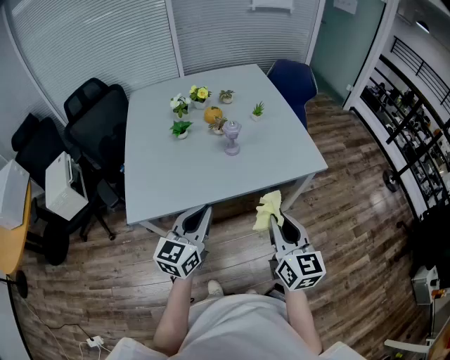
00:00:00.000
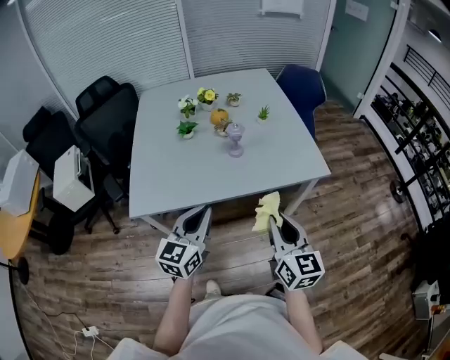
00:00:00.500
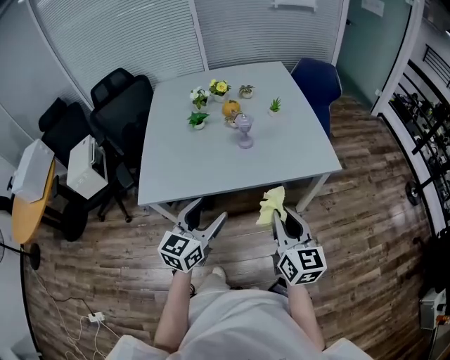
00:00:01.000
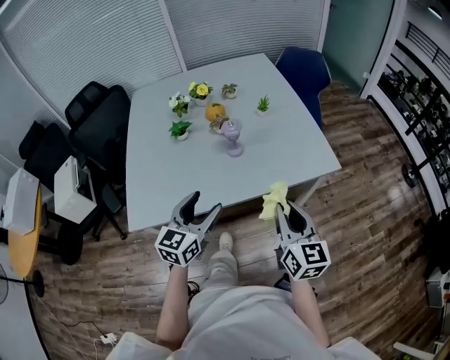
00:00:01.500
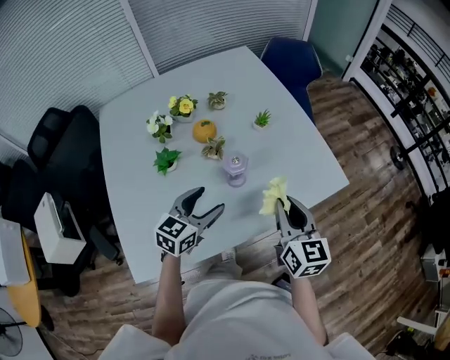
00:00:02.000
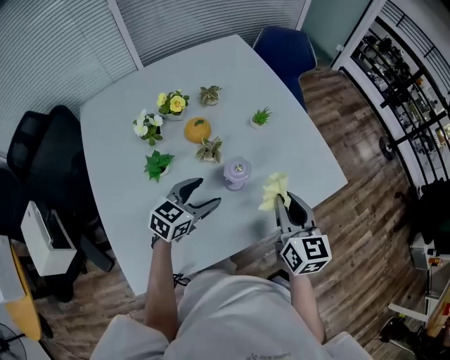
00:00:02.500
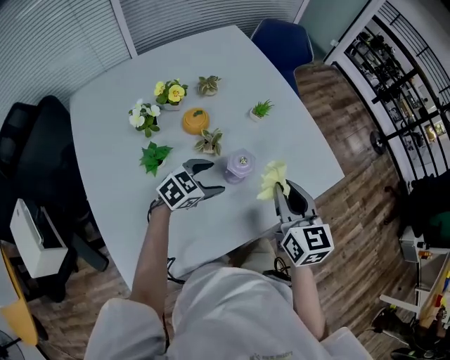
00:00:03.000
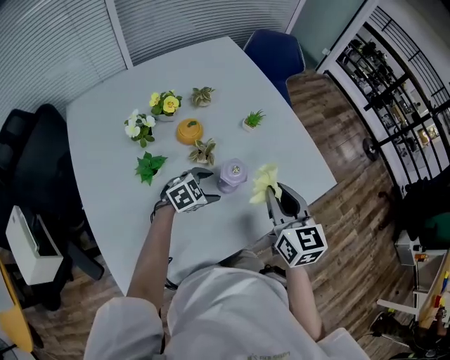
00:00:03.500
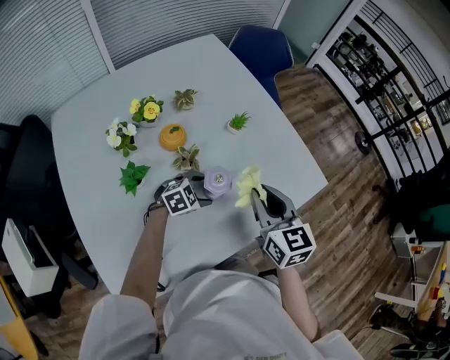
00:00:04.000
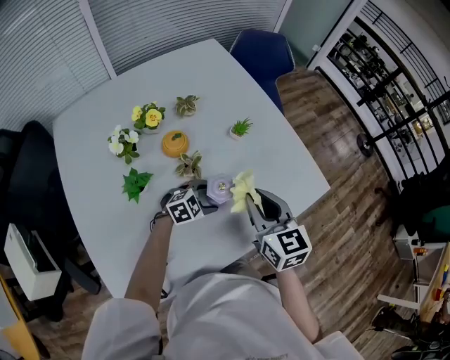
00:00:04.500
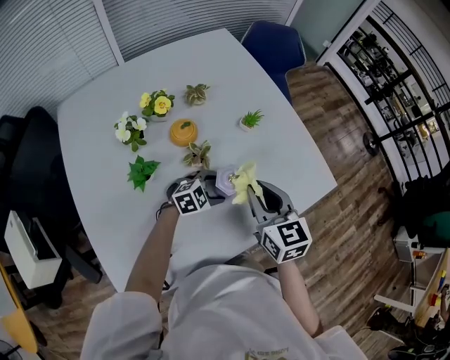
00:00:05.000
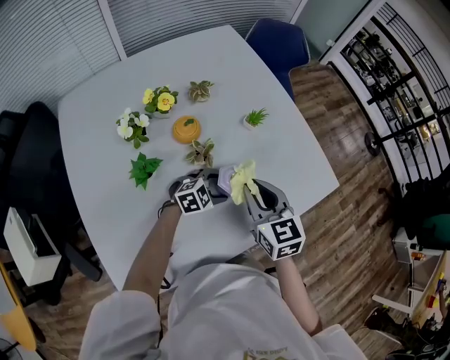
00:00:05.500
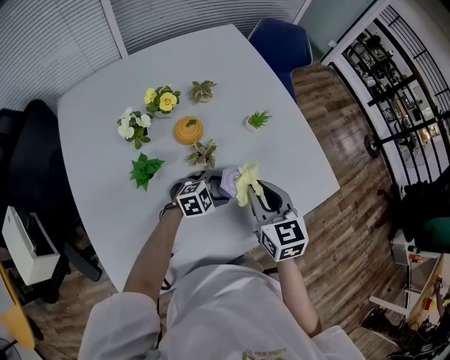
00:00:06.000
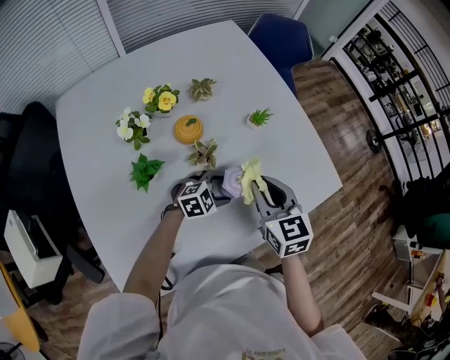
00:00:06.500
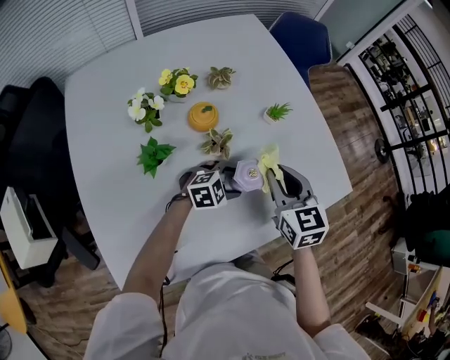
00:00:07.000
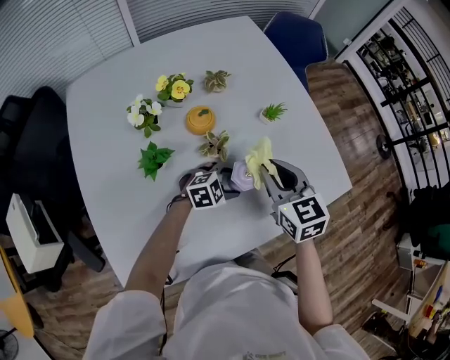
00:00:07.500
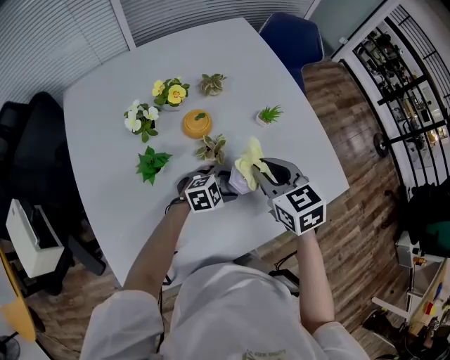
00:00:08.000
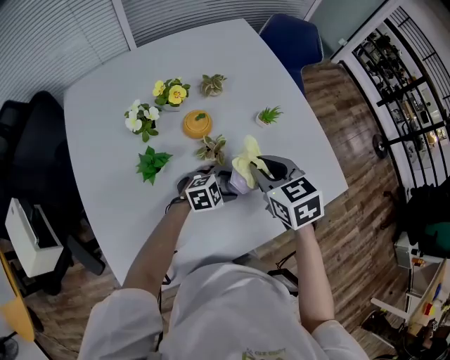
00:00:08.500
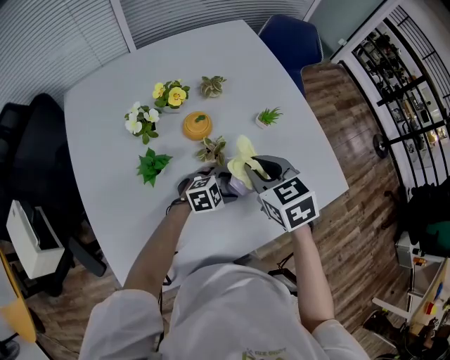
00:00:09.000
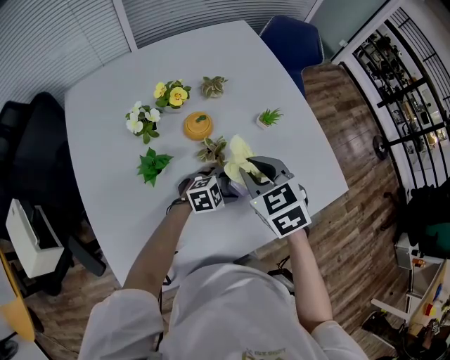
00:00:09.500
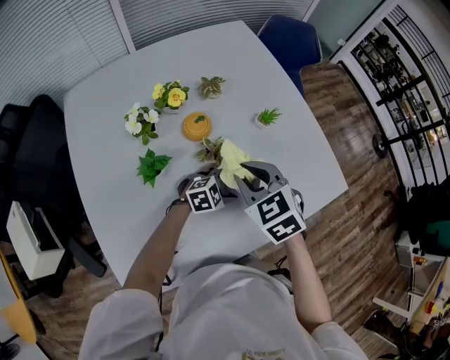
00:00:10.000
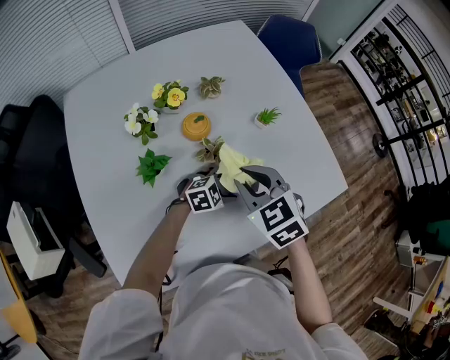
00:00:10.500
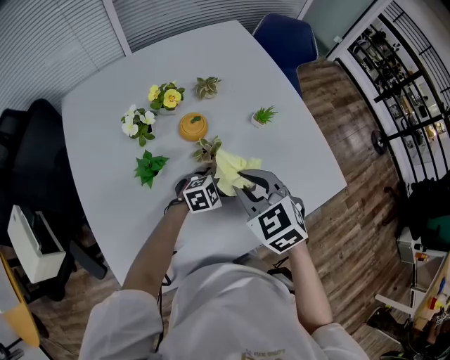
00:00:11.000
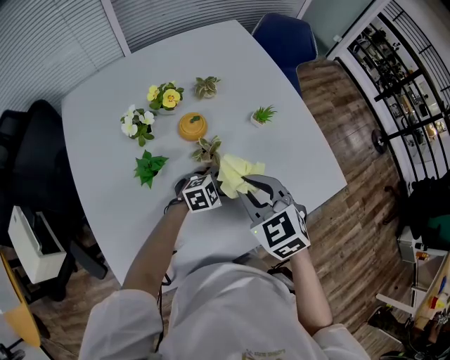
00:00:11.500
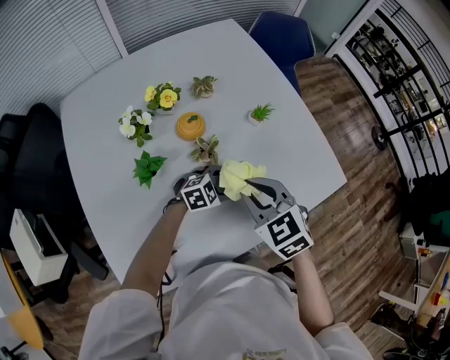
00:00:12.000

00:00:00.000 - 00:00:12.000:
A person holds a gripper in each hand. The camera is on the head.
00:00:00.000 - 00:00:02.000: The two grippers go some 30 cm forward. The left gripper changes its angle by some 30 degrees, and opens its fingers.
00:00:02.000 - 00:00:04.000: The right gripper shifts about 10 cm to the left and forward. Meanwhile the left gripper heads downward and forward, covering roughly 20 cm, and swivels some 50 degrees.
00:00:04.000 - 00:00:06.000: The right gripper travels to the left by approximately 5 cm.
00:00:06.000 - 00:00:08.000: The grippers stay close to where they were, moving slightly.
00:00:08.000 - 00:00:10.000: The right gripper shifts by roughly 5 cm.
00:00:10.000 - 00:00:12.000: The right gripper moves roughly 5 cm.

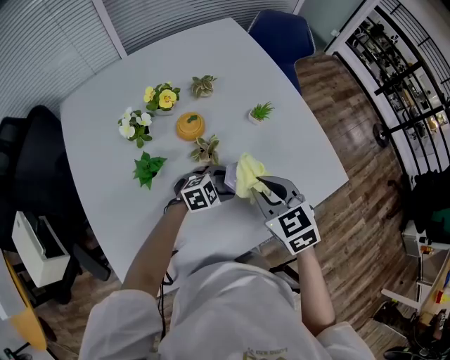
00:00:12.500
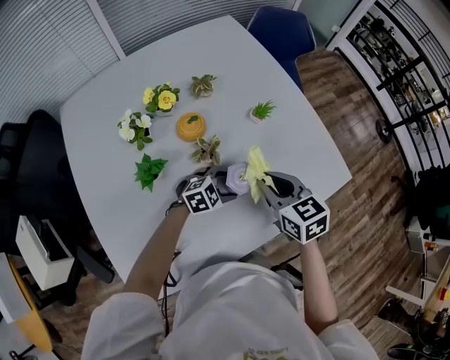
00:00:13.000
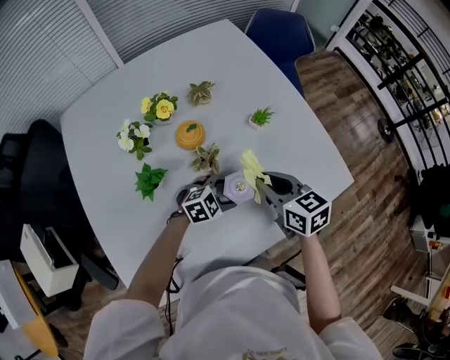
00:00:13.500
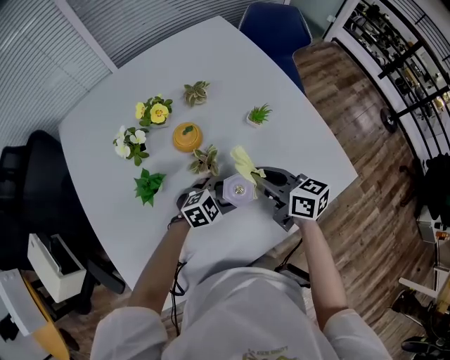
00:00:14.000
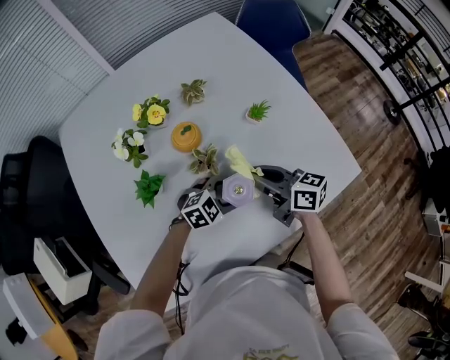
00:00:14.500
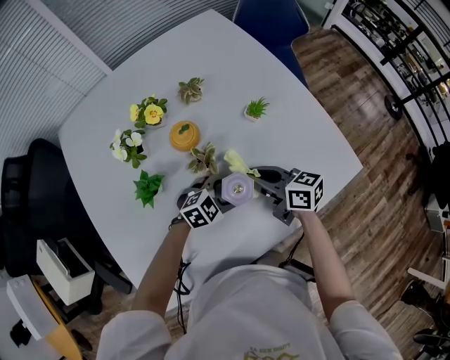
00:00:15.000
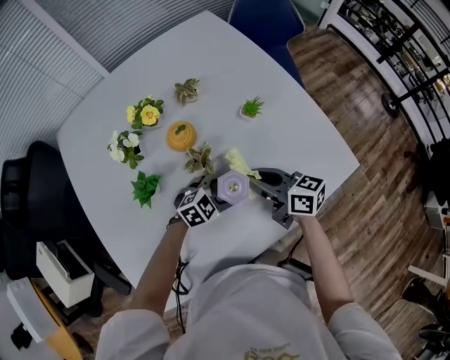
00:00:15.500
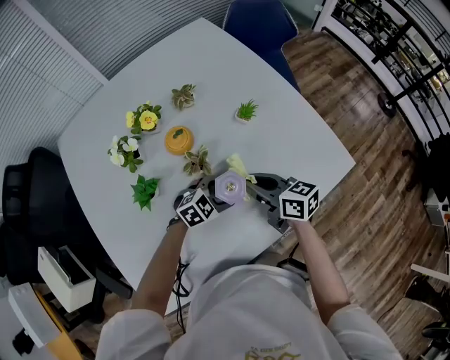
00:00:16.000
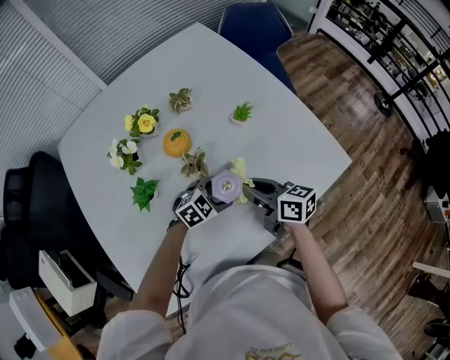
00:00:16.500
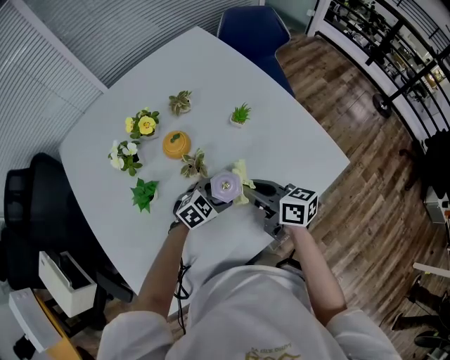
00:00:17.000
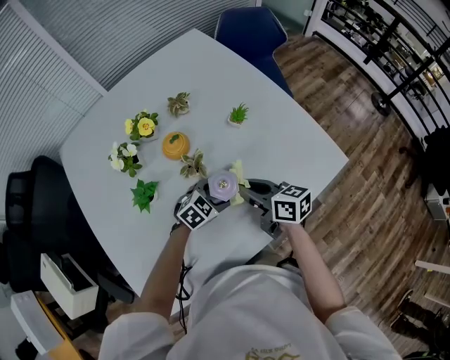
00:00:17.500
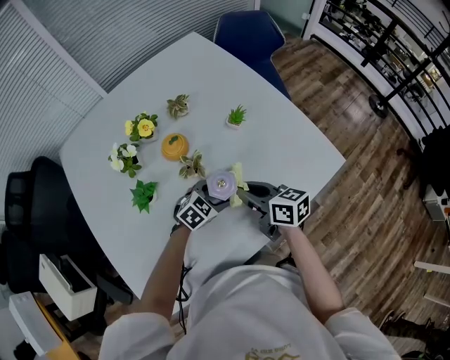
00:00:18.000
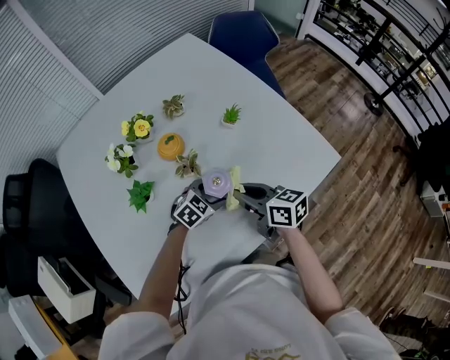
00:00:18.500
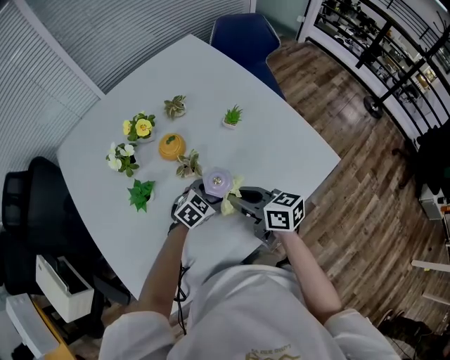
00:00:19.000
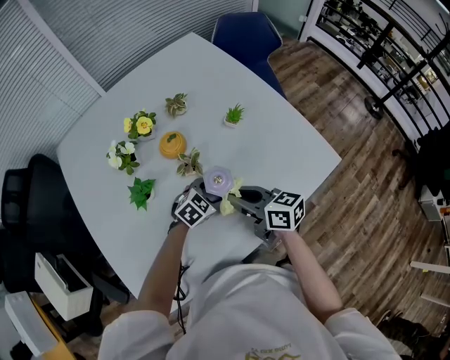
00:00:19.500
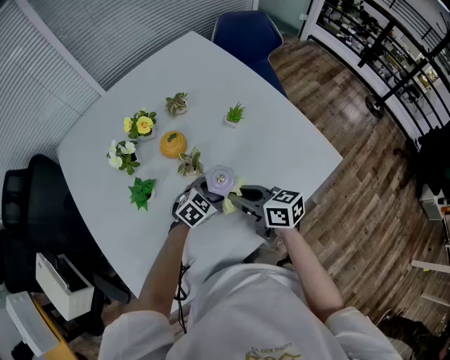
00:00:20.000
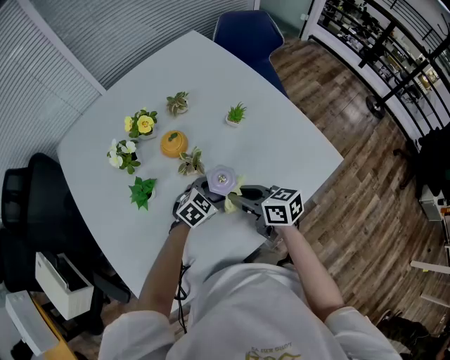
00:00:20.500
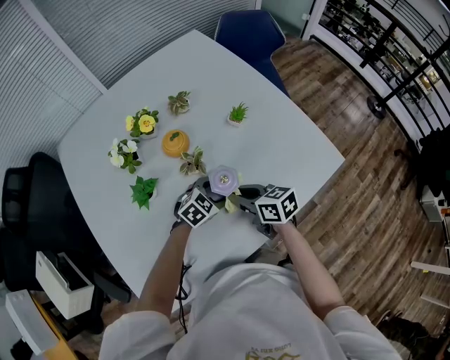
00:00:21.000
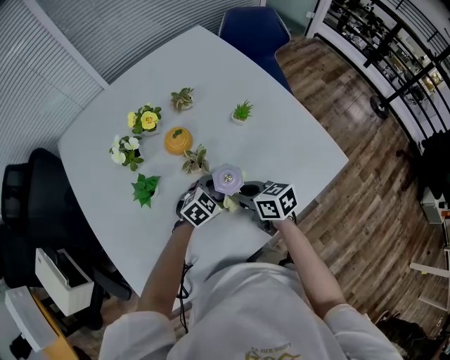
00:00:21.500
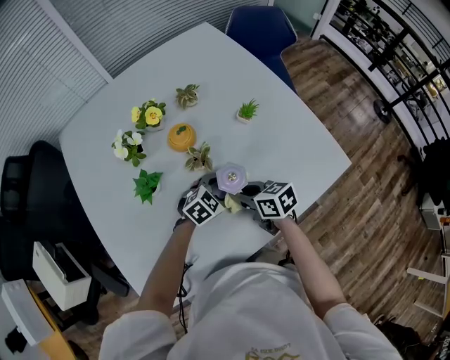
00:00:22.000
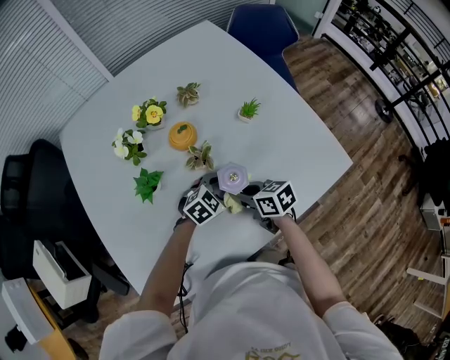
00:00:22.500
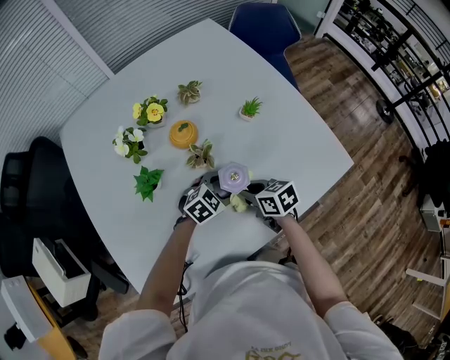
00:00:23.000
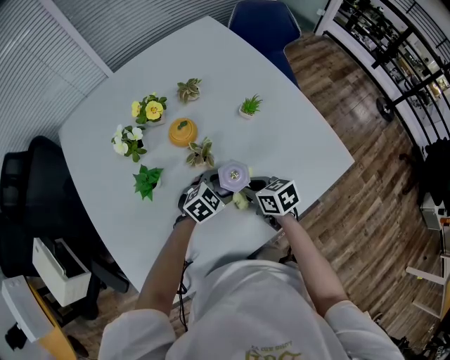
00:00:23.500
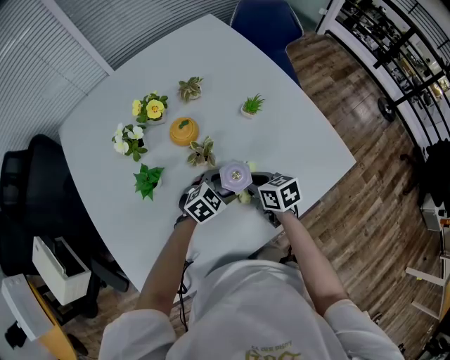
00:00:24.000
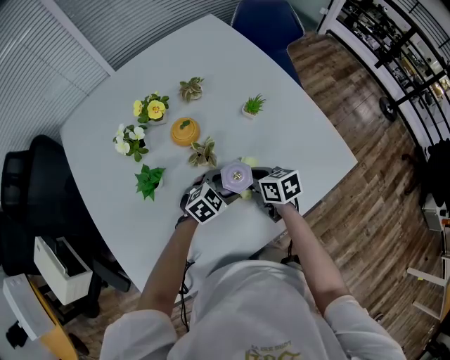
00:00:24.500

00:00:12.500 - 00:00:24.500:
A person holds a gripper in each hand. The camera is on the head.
00:00:12.500 - 00:00:14.500: The right gripper moves roughly 10 cm, and swivels approximately 50 degrees.
00:00:14.500 - 00:00:16.500: The grippers stay close to where they were, moving slightly.
00:00:16.500 - 00:00:20.500: The grippers move only a little.
00:00:20.500 - 00:00:22.500: The right gripper travels downward by some 5 cm.
00:00:22.500 - 00:00:24.500: The right gripper moves approximately 5 cm.

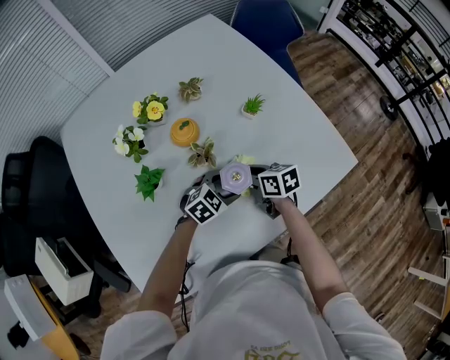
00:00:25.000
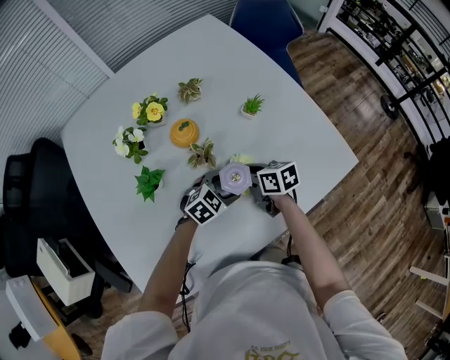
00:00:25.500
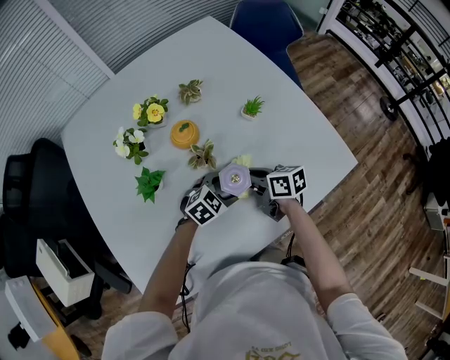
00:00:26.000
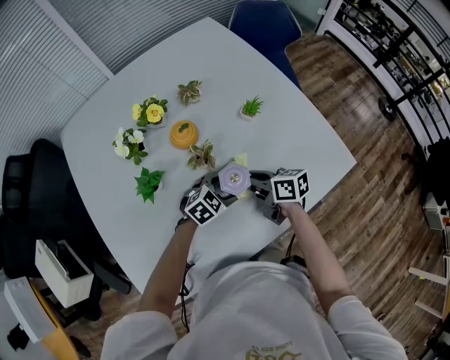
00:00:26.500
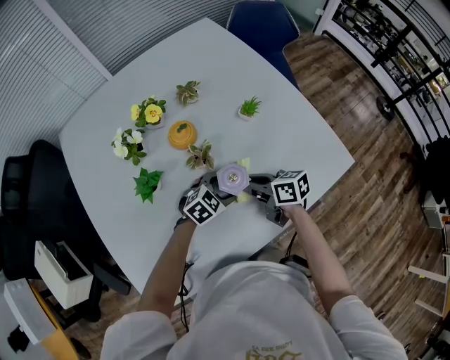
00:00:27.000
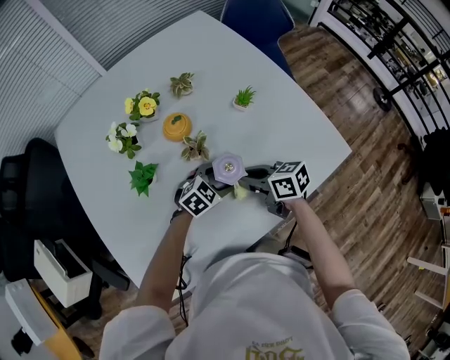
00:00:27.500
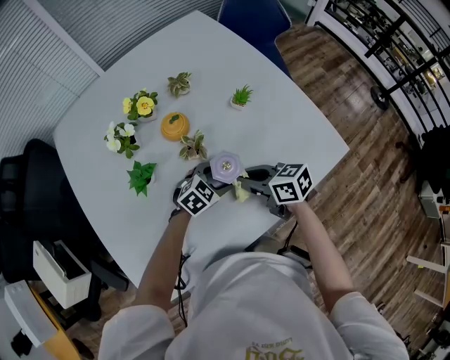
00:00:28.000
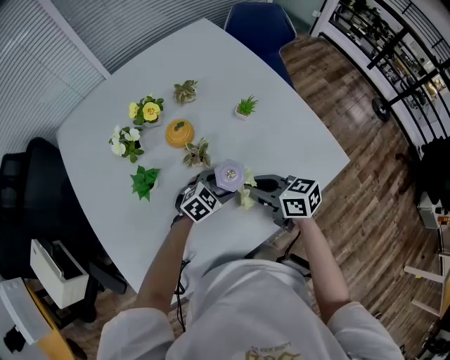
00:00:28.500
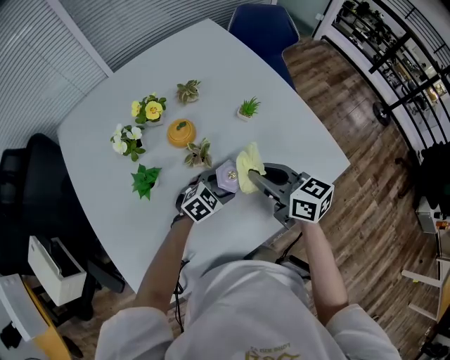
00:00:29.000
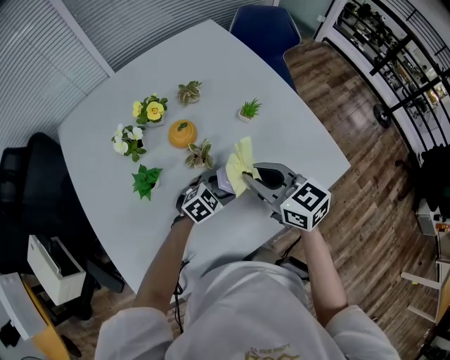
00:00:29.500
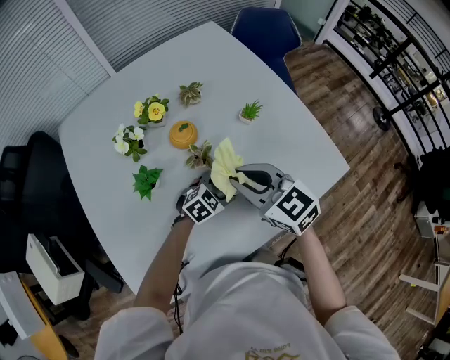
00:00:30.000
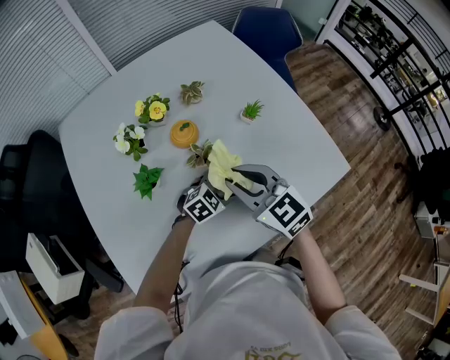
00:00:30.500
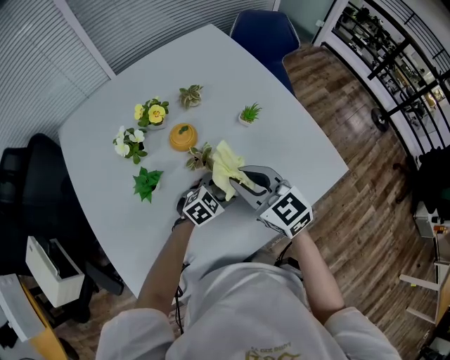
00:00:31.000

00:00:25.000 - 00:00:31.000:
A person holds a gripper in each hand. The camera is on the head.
00:00:25.000 - 00:00:27.000: The right gripper moves about 5 cm.
00:00:27.000 - 00:00:29.000: The right gripper moves upward, approximately 10 cm, and changes its angle by roughly 20 degrees.
00:00:29.000 - 00:00:31.000: The right gripper moves to the left, roughly 5 cm, and rotates some 30 degrees.
